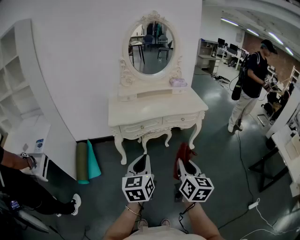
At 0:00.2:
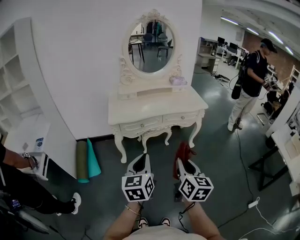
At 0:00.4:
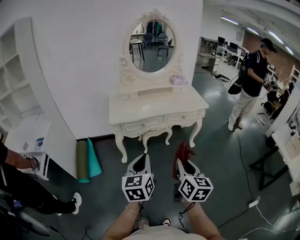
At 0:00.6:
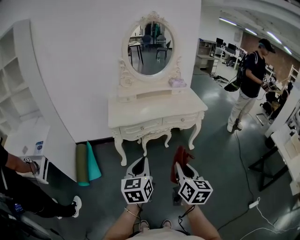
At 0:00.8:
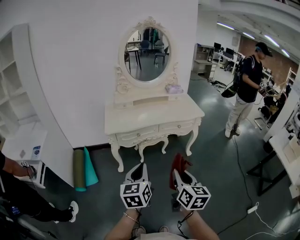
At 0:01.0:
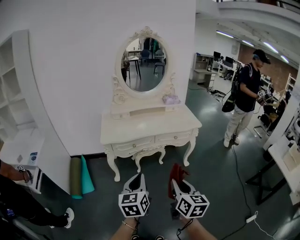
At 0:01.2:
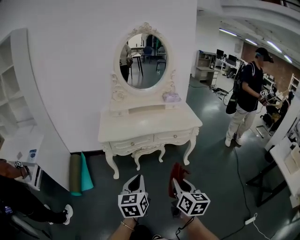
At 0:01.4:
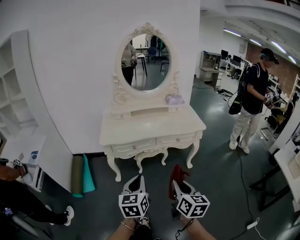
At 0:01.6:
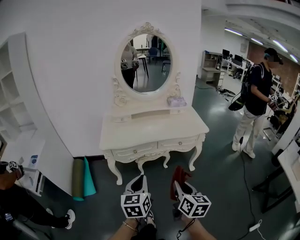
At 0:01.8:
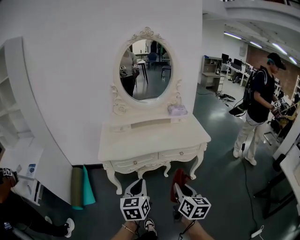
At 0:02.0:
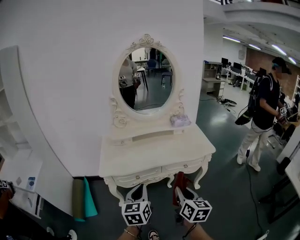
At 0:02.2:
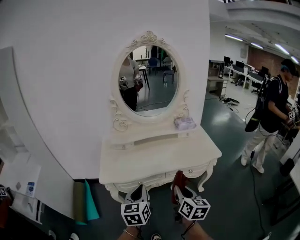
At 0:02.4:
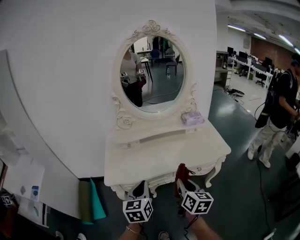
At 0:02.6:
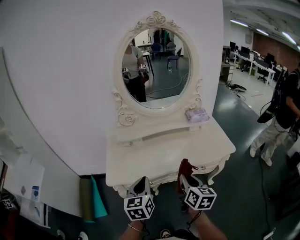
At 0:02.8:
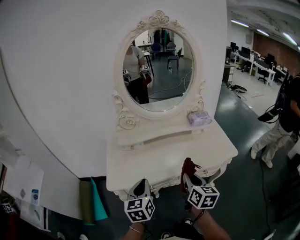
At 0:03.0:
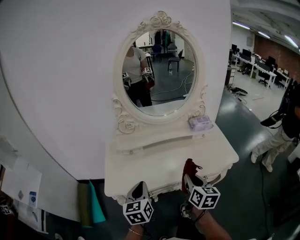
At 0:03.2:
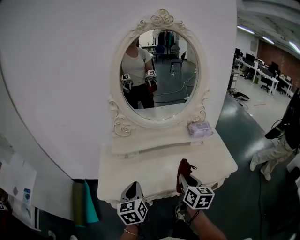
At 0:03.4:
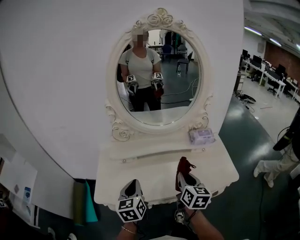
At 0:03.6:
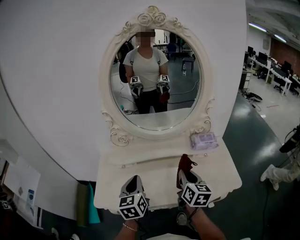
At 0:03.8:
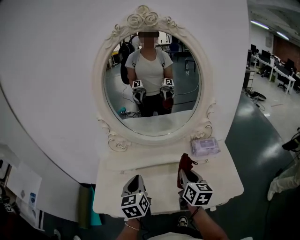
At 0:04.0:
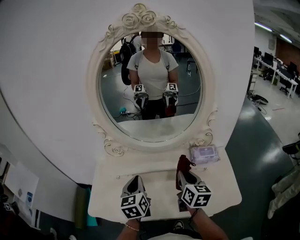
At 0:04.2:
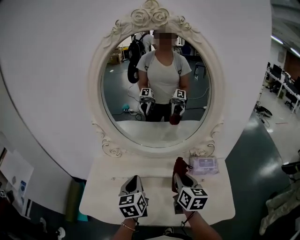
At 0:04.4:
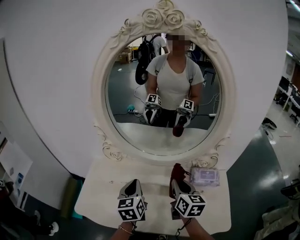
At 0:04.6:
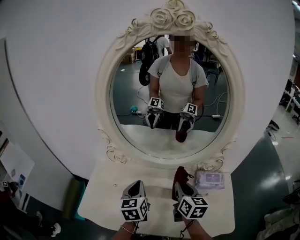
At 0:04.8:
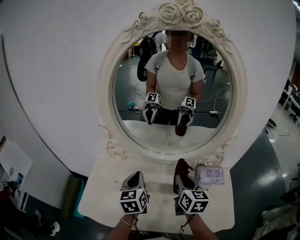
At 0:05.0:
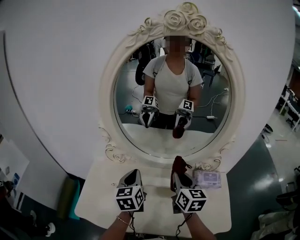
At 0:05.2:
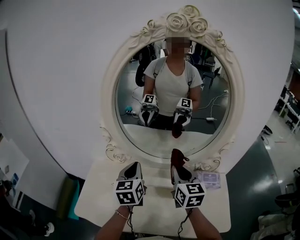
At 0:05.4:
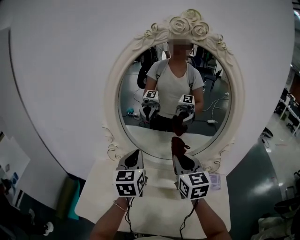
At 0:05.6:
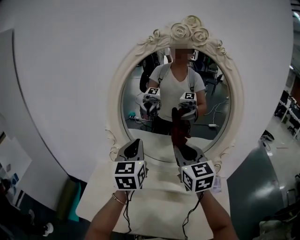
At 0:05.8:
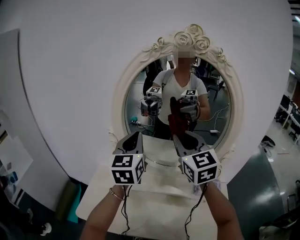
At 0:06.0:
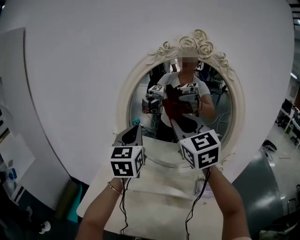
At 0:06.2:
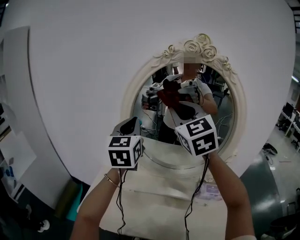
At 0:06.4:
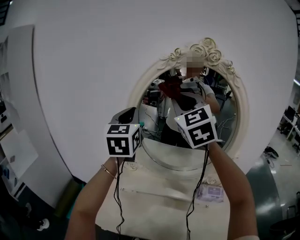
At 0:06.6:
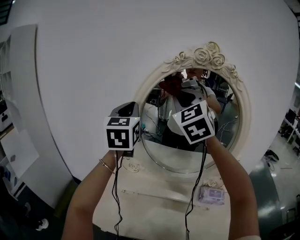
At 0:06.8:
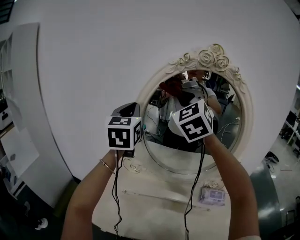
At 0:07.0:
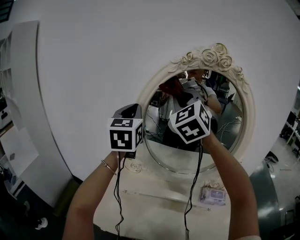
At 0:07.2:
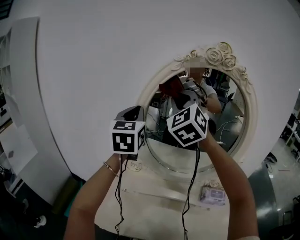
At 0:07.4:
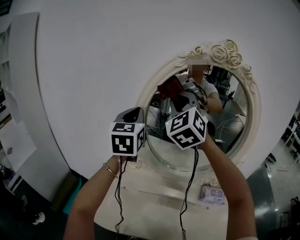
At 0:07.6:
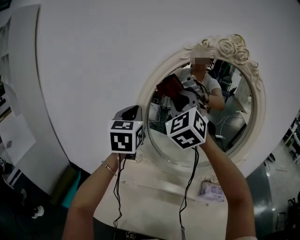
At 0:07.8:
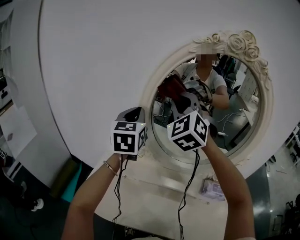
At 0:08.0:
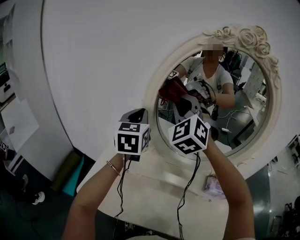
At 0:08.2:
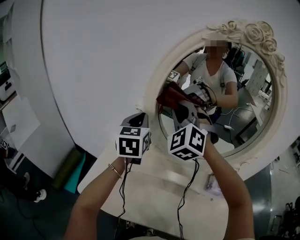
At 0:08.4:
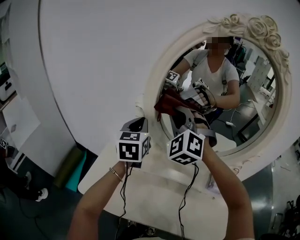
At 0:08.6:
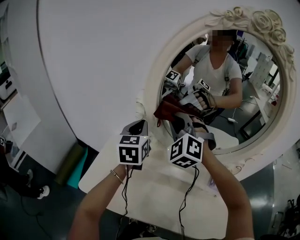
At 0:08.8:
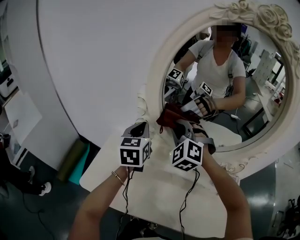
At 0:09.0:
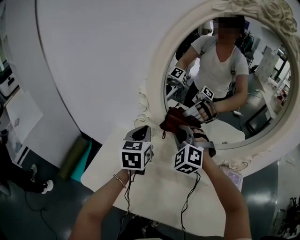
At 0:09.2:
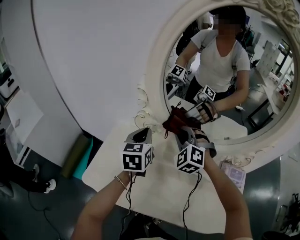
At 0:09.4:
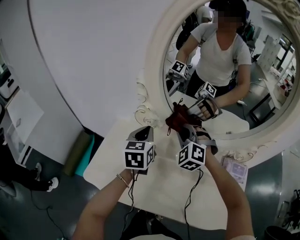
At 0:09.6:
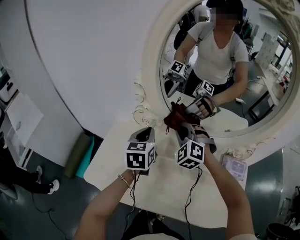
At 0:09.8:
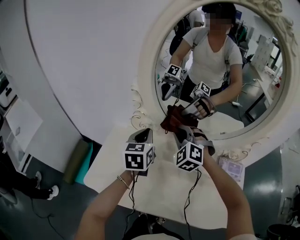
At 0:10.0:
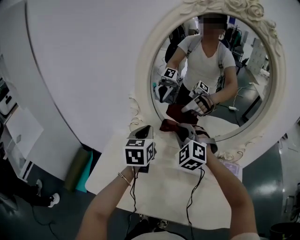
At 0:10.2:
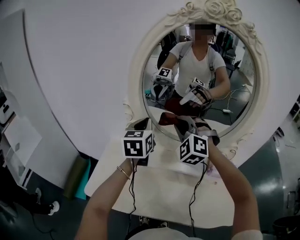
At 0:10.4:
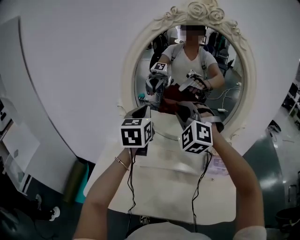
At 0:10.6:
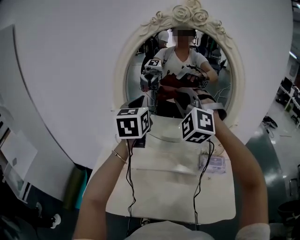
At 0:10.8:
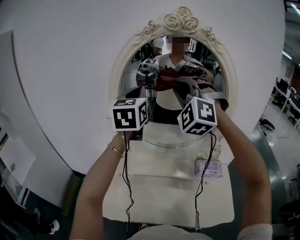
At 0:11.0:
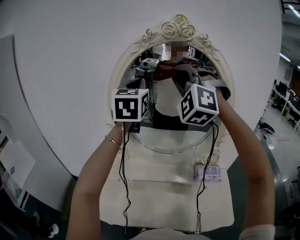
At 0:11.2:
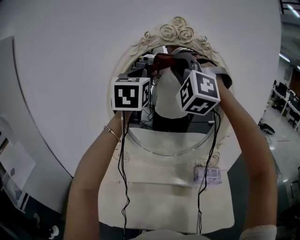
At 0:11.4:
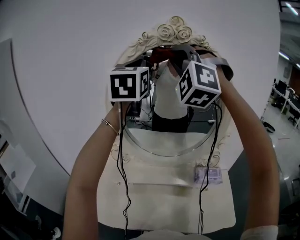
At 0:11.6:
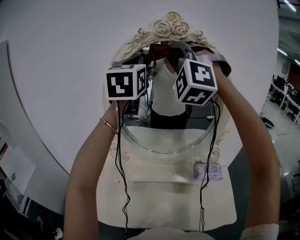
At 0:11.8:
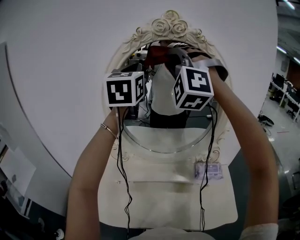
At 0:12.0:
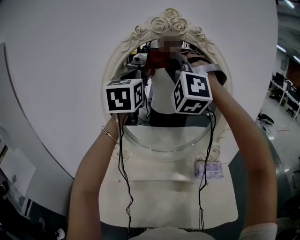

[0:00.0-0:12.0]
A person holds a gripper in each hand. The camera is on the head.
0:00.0 to 0:01.6: The left gripper moves forward and to the right, roughly 10 cm. Meanwhile the right gripper travels forward, to the right and downward by roughly 15 cm.
0:01.6 to 0:03.0: The grippers both shift forward by about 35 cm.
0:03.0 to 0:04.4: The left gripper shifts some 30 cm forward and to the right. Meanwhile the right gripper travels forward by roughly 30 cm.
0:04.4 to 0:06.0: The right gripper is displaced upward by approximately 35 cm, and rotates around the line of its fingers by roughly 50 degrees, counterclockwise from behind. Meanwhile the left gripper is displaced upward and forward by approximately 30 cm, and swivels some 30 degrees.
0:06.0 to 0:07.6: The right gripper travels to the left and forward by some 10 cm, and turns by some 40 degrees; the left gripper goes approximately 10 cm to the left, and goes upward and returns, some 10 cm each way.
0:07.6 to 0:09.0: The two grippers go roughly 30 cm downward. The right gripper turns by approximately 30 degrees. Meanwhile the left gripper swivels roughly 20 degrees.
0:09.0 to 0:10.4: The two grippers go approximately 20 cm upward and to the right.
0:10.4 to 0:12.0: The two grippers go roughly 20 cm upward. The right gripper turns by about 20 degrees.

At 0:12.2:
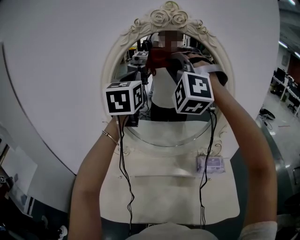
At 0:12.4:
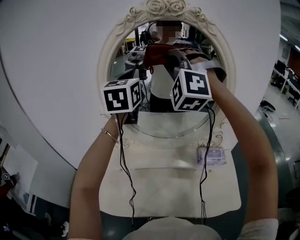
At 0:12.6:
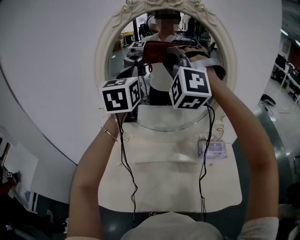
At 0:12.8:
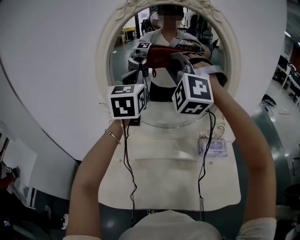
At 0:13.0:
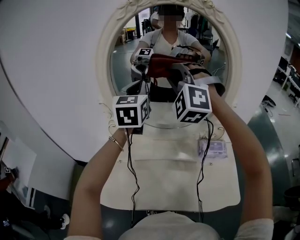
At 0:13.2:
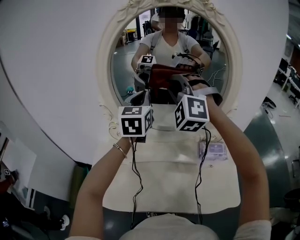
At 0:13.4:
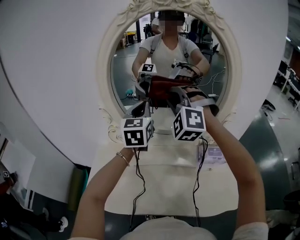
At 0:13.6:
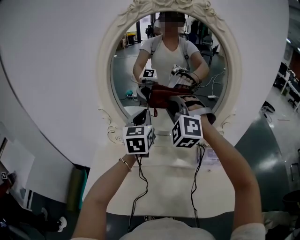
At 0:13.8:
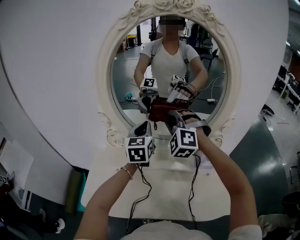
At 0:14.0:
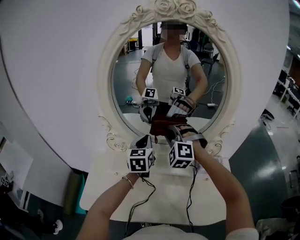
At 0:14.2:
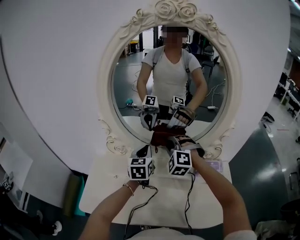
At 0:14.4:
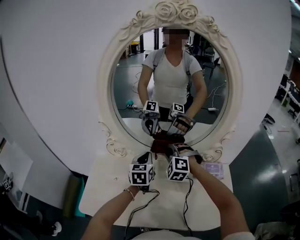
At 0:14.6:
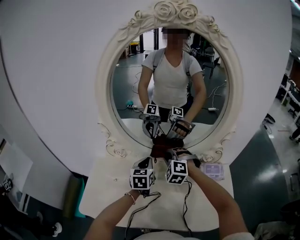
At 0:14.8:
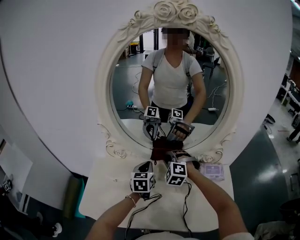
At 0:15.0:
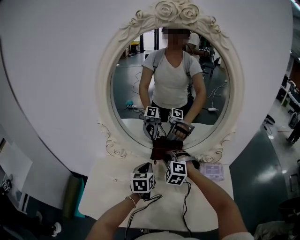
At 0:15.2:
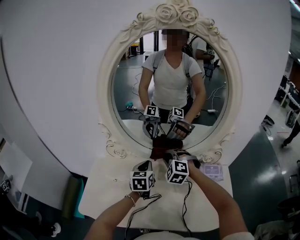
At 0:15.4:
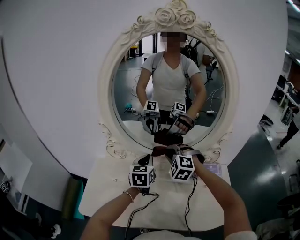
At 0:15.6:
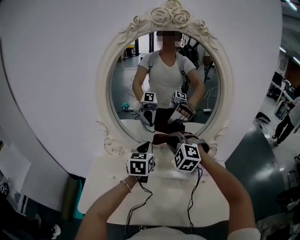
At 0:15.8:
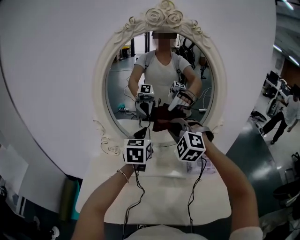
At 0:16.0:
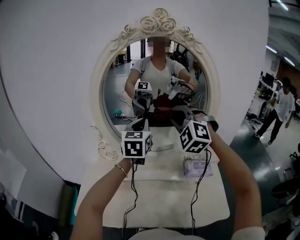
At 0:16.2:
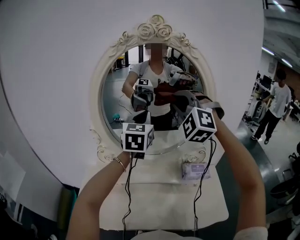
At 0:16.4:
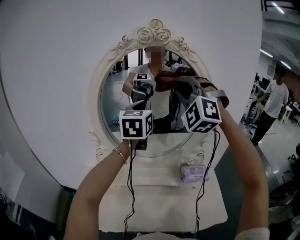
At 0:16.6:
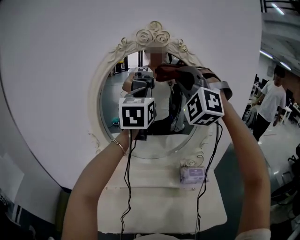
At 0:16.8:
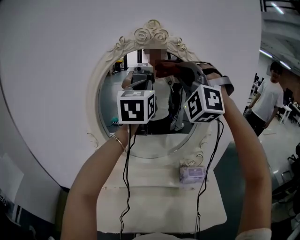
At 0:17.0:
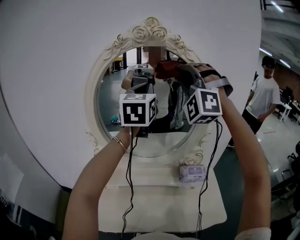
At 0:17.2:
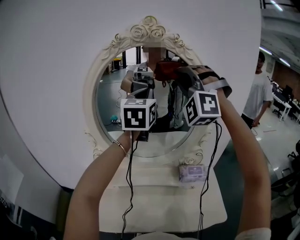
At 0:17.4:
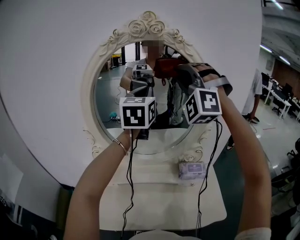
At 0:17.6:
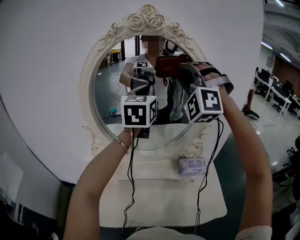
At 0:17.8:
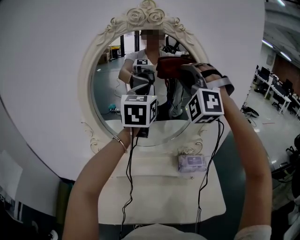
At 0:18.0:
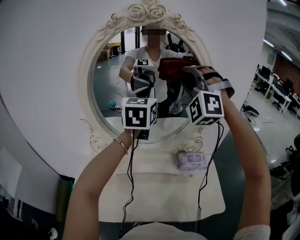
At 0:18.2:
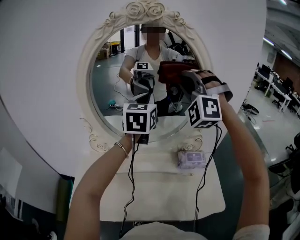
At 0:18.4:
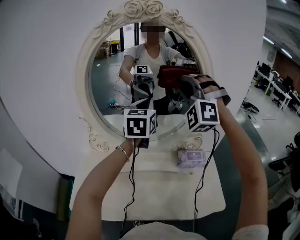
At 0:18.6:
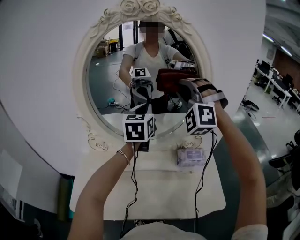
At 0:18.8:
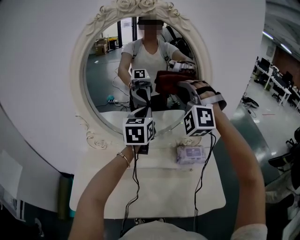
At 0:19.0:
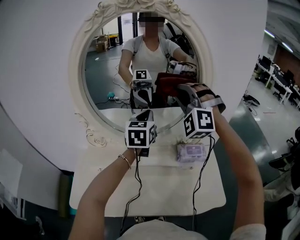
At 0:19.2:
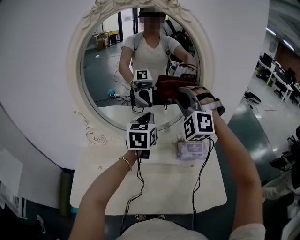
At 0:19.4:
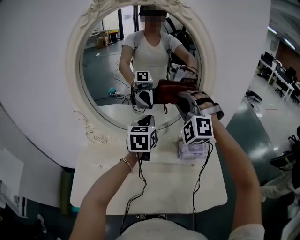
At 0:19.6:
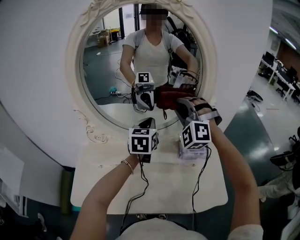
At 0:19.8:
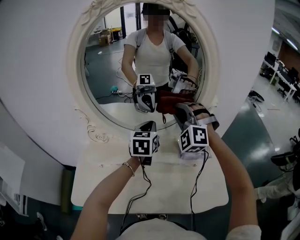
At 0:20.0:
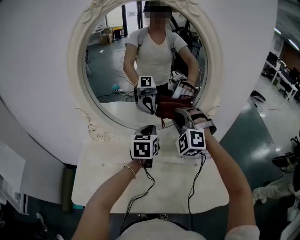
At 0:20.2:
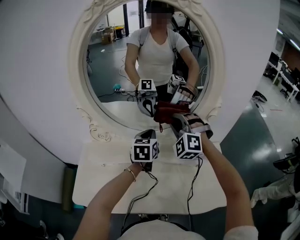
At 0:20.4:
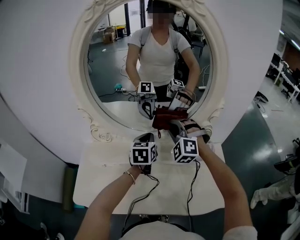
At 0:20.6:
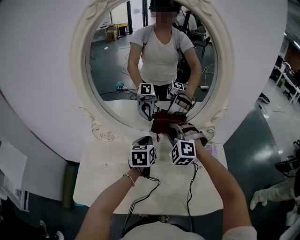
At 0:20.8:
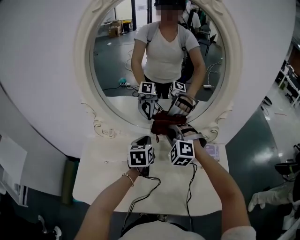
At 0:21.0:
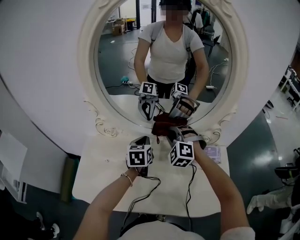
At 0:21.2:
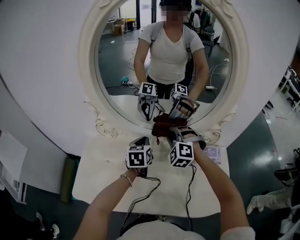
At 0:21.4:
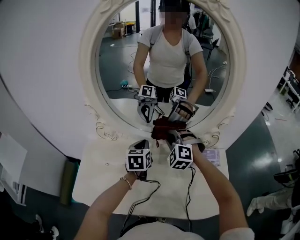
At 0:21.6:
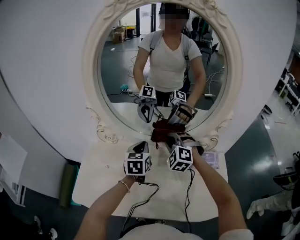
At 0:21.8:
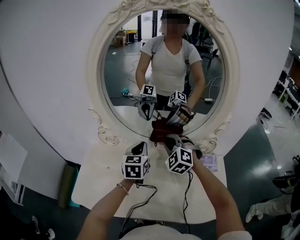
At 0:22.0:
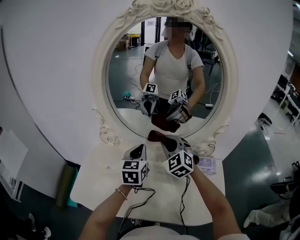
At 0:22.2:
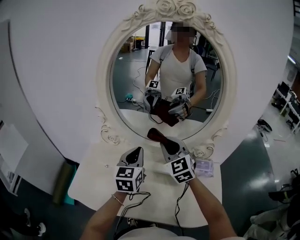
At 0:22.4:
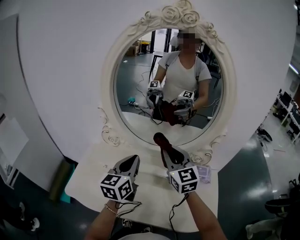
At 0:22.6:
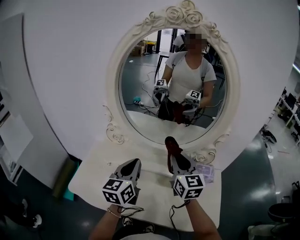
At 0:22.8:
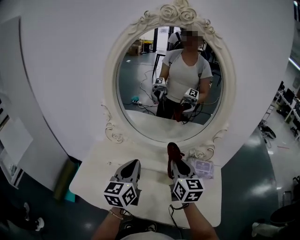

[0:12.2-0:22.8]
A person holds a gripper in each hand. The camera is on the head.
0:12.2 to 0:13.8: The two grippers go approximately 25 cm downward. The right gripper swivels about 20 degrees.
0:13.8 to 0:15.2: The two grippers go about 15 cm downward. The right gripper swivels some 20 degrees.
0:15.2 to 0:16.8: The grippers both shift upward by some 50 cm. The right gripper tilts its fingers about 50 degrees upward. The left gripper tilts its fingers about 30 degrees upward.
0:16.8 to 0:18.2: Both grippers travel together downward, about 15 cm.
0:18.2 to 0:19.8: The grippers both shift downward by some 20 cm.
0:19.8 to 0:21.2: The two grippers go some 15 cm downward and to the left. The right gripper rotates about 20 degrees.
0:21.2 to 0:22.8: The two grippers go about 20 cm backward and upward. The right gripper twists about 70 degrees clockwise, seen from behind; the left gripper changes its angle by some 30 degrees.

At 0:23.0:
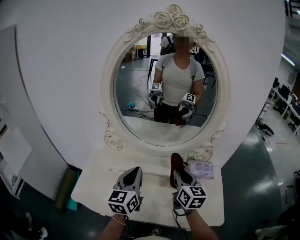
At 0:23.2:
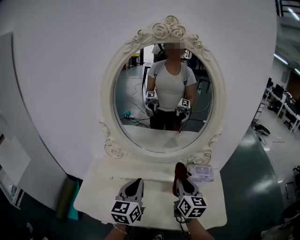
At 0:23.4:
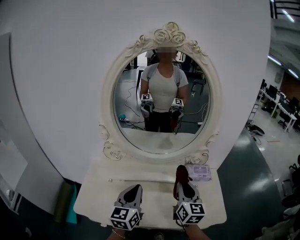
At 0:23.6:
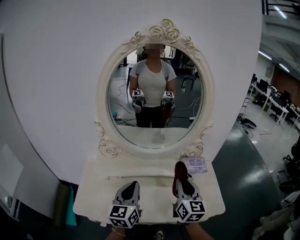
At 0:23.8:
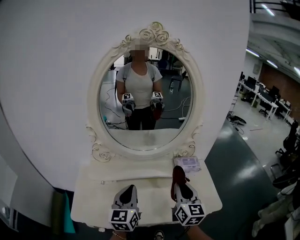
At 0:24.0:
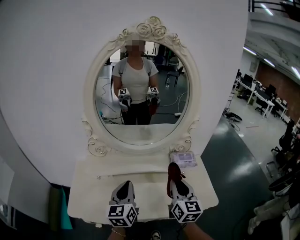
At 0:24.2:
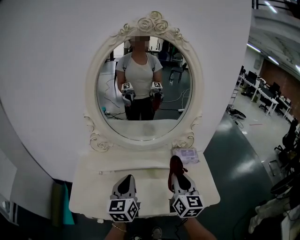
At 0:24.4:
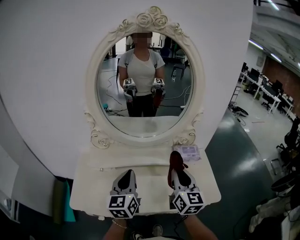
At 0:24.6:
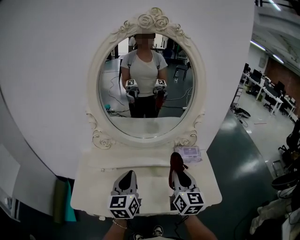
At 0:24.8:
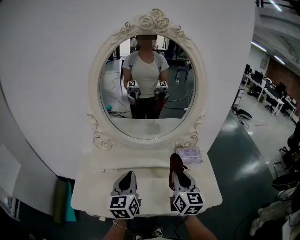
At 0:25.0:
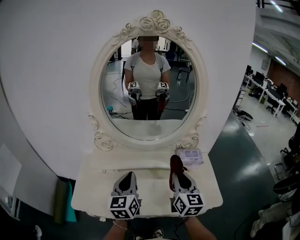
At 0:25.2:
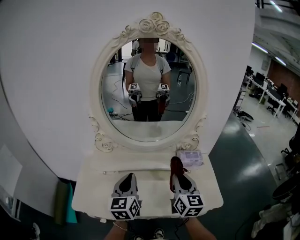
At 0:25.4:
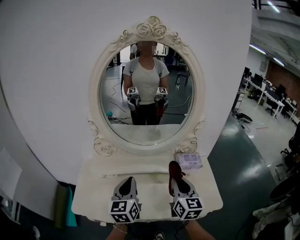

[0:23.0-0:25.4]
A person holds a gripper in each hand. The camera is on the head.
0:23.0 to 0:24.2: The right gripper heads backward, covering about 10 cm. Meanwhile the left gripper travels backward by about 5 cm.
0:24.2 to 0:25.4: The grippers move only a little.
